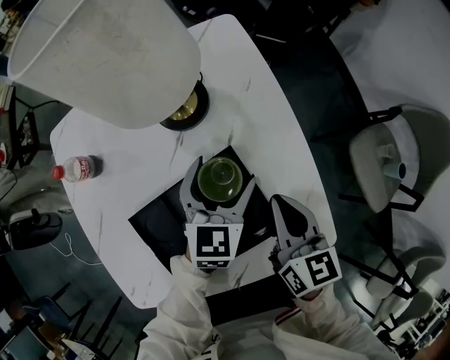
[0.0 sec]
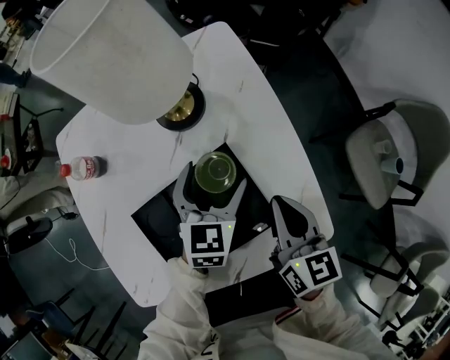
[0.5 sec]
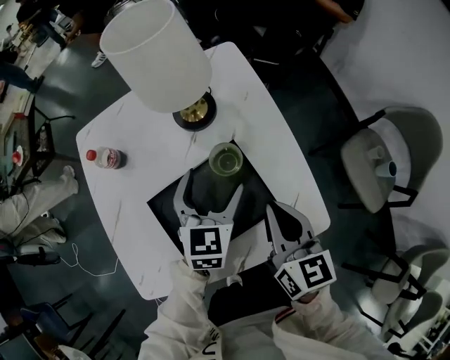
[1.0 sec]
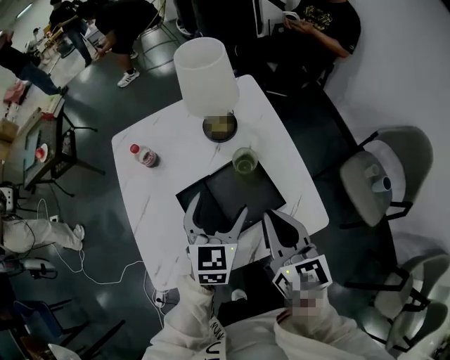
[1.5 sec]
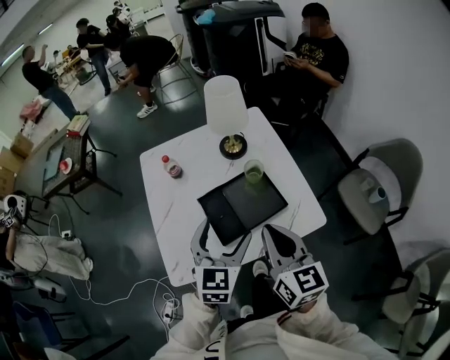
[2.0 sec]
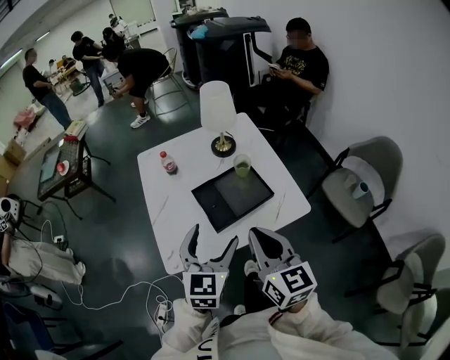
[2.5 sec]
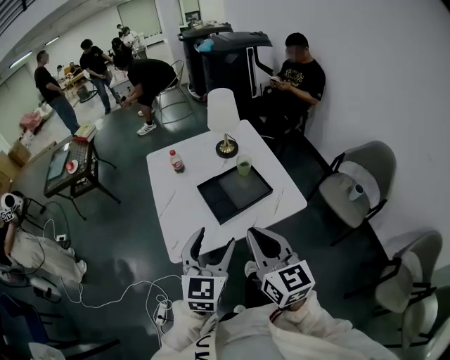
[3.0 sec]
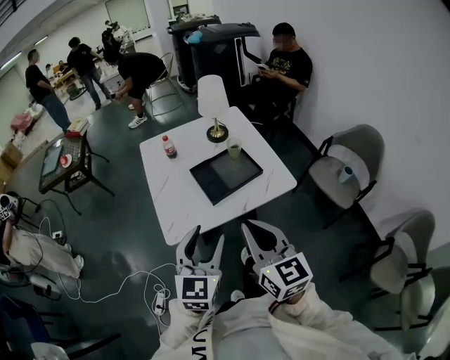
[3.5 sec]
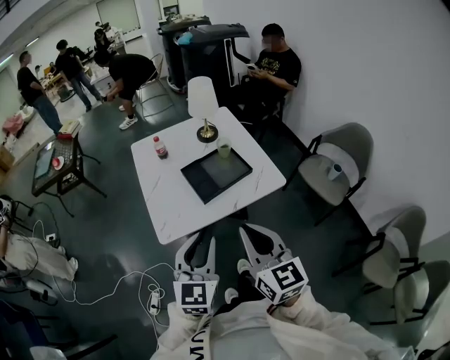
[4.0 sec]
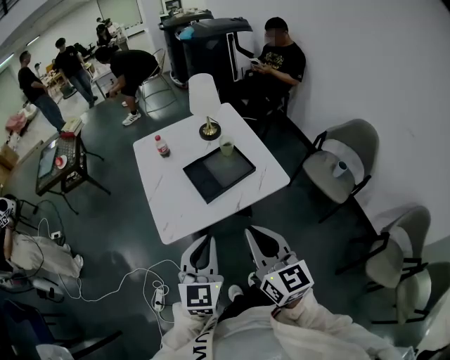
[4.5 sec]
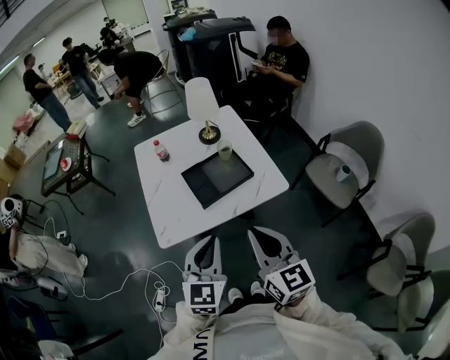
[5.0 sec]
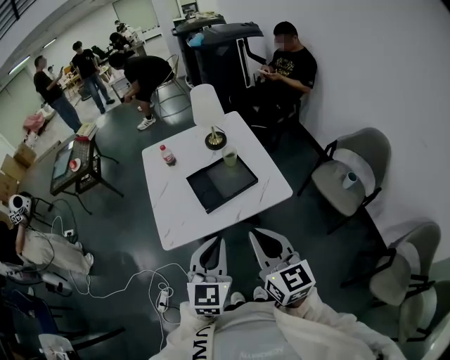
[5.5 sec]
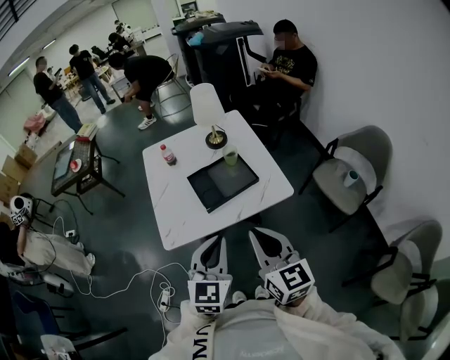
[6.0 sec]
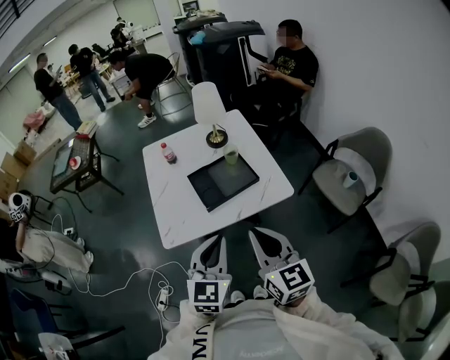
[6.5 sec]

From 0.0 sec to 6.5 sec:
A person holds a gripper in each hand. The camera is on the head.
From 0.0 sec to 2.0 sec: The left gripper is displaced backward, upward and to the left by about 35 cm. Meanwhile the right gripper goes roughly 35 cm upward, backward and to the left.
From 2.0 sec to 4.5 sec: Both grippers travel together backward, roughly 25 cm. The left gripper closes up.
From 4.5 sec to 6.5 sec: The grippers both shift to the right by about 5 cm.

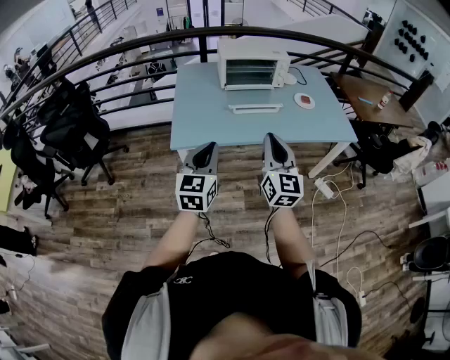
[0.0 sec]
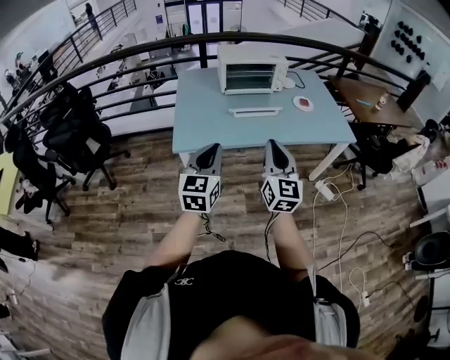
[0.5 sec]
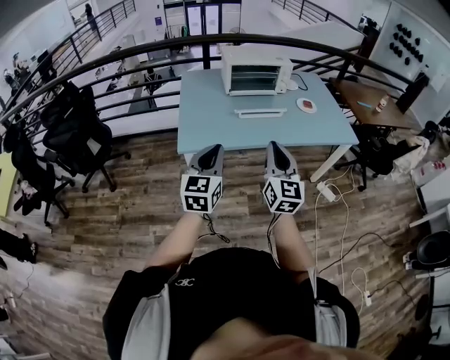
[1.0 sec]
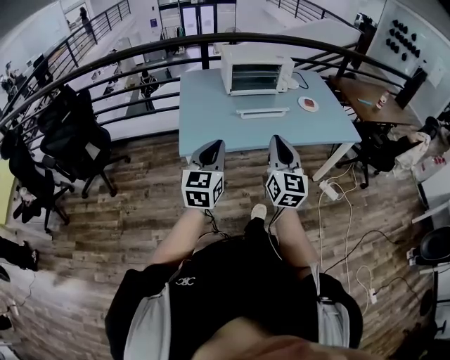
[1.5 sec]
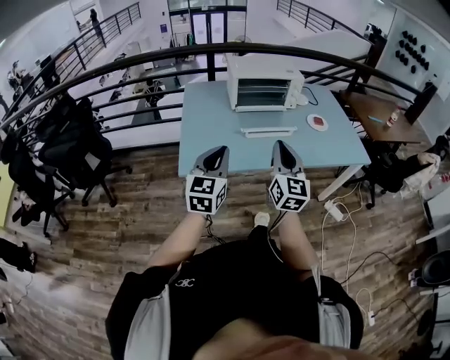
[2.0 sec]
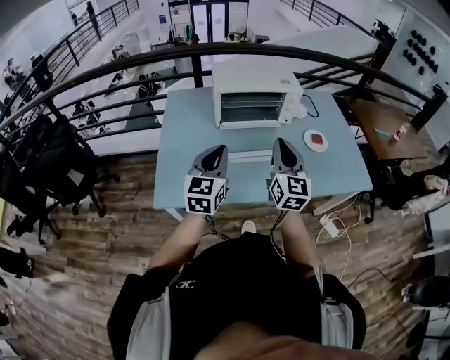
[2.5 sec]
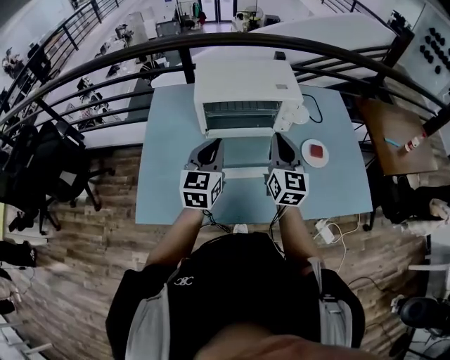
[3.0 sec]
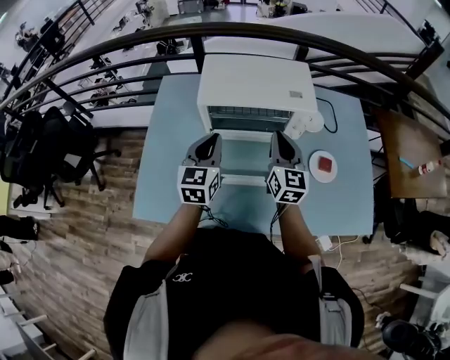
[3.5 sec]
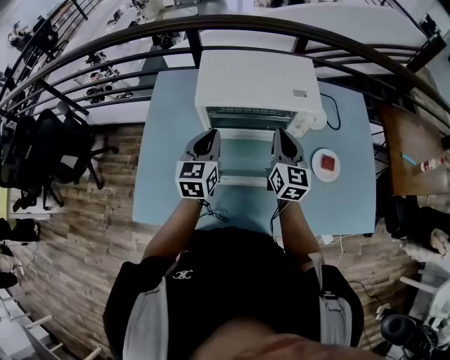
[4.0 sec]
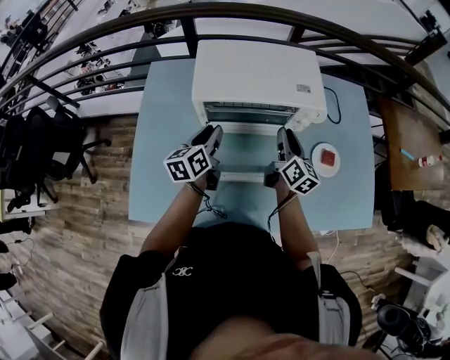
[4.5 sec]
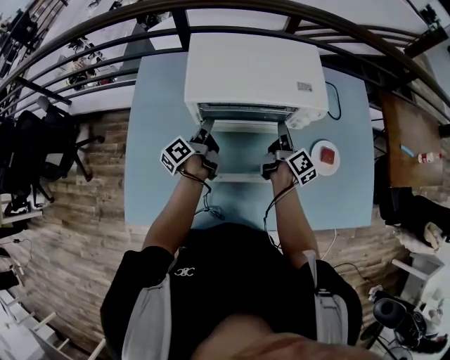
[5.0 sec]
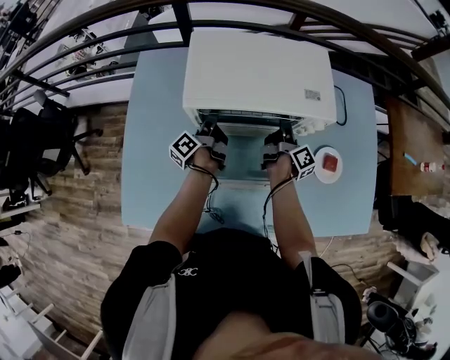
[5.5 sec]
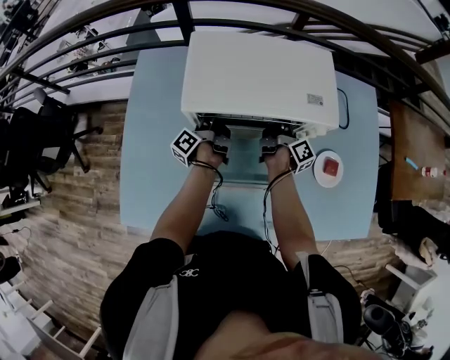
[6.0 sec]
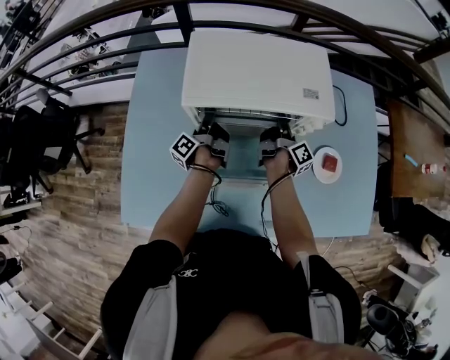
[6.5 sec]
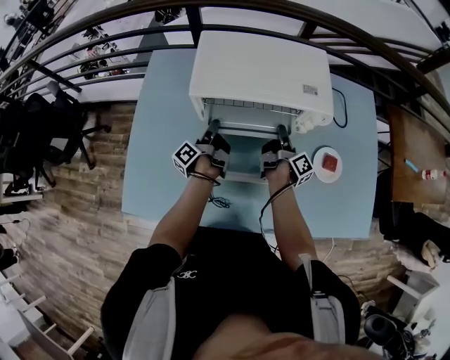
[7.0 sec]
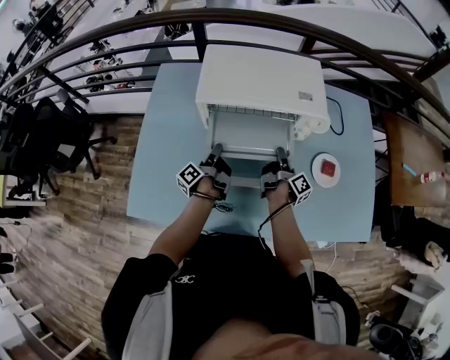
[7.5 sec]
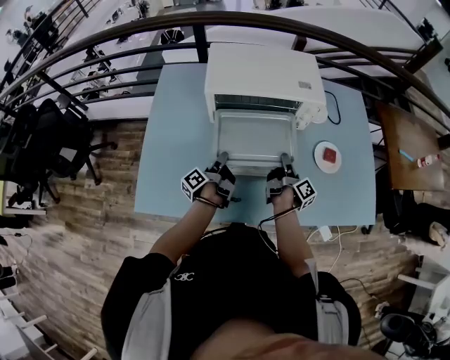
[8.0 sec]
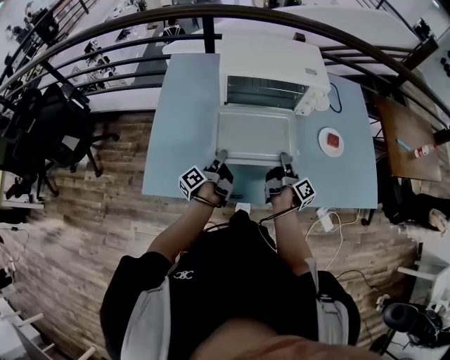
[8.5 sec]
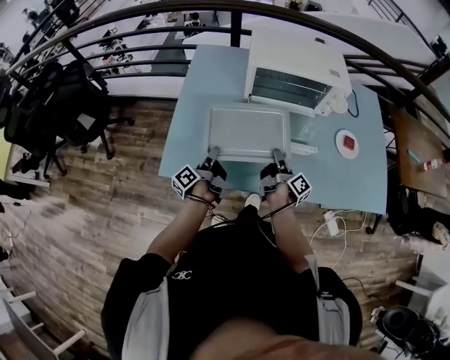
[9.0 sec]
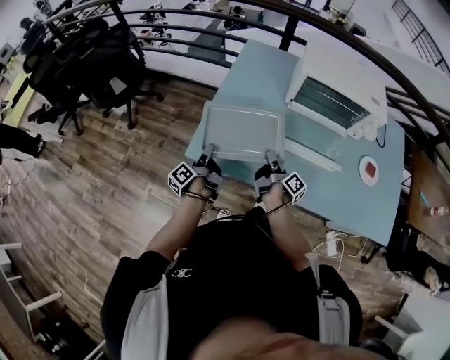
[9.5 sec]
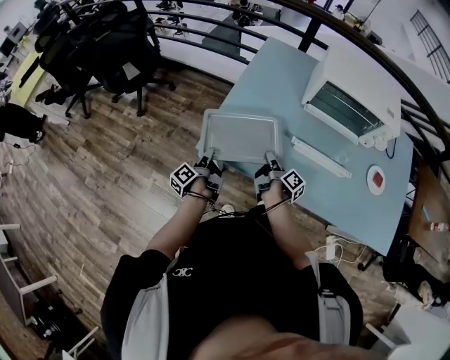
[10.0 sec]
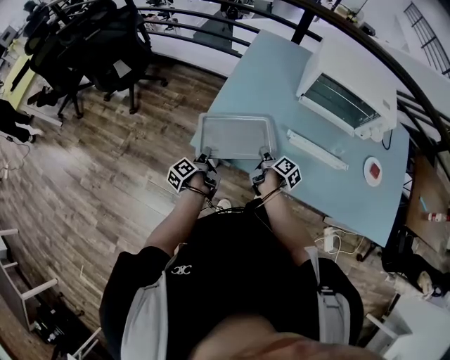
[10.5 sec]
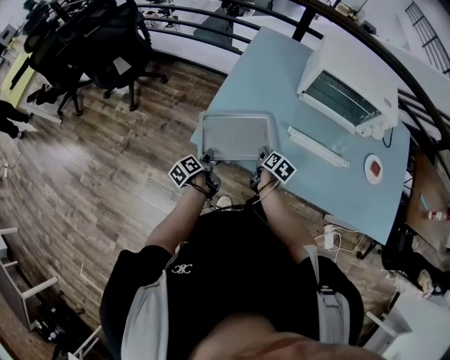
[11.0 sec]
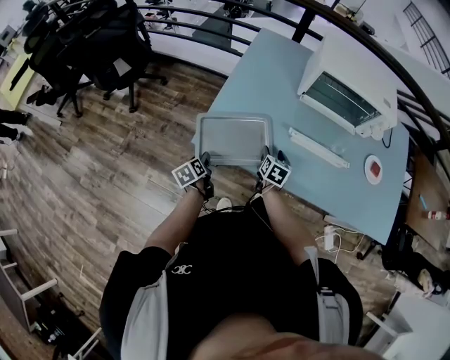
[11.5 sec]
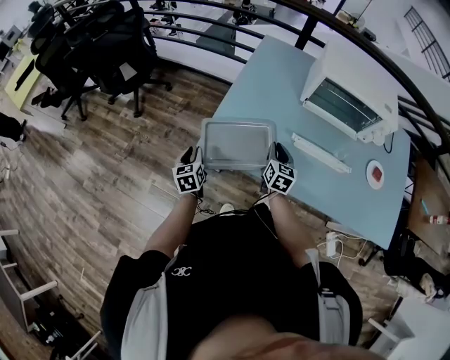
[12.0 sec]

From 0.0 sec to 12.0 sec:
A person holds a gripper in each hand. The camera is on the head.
From 0.0 sec to 2.0 sec: The two grippers go approximately 10 cm forward.
From 2.0 sec to 4.0 sec: The two grippers travel together, forward, about 50 cm. The left gripper swivels approximately 20 degrees.
From 4.0 sec to 6.0 sec: Both grippers travel together downward and forward, some 25 cm. The left gripper twists approximately 90 degrees counterclockwise, seen from behind. The right gripper rotates around the line of its fingers by roughly 70 degrees, clockwise from behind, and opens its fingers.
From 6.0 sec to 8.0 sec: Both grippers move backward, approximately 25 cm.
From 8.0 sec to 10.0 sec: The right gripper changes place by roughly 35 cm, and changes its angle by about 30 degrees, while the left gripper shifts by about 40 cm, and changes its angle by roughly 30 degrees.
From 10.0 sec to 12.0 sec: The right gripper rotates around the line of its fingers by some 70 degrees, counterclockwise from behind, and opens and closes again. The left gripper is displaced to the left by about 5 cm, travels downward and back again, roughly 10 cm each way, twists roughly 70 degrees clockwise, seen from behind, and opens and closes again.

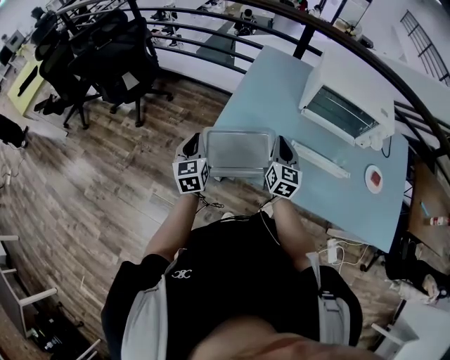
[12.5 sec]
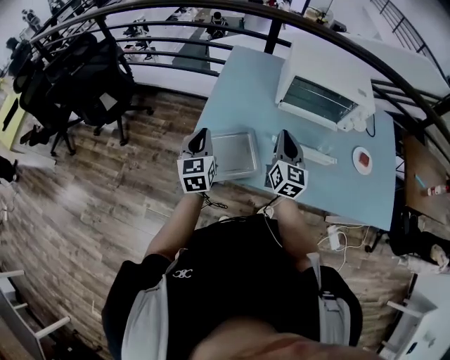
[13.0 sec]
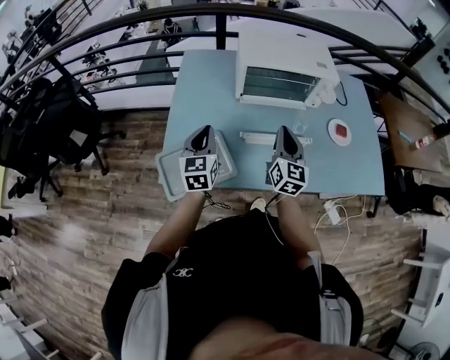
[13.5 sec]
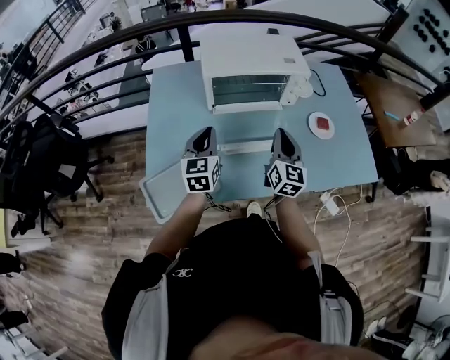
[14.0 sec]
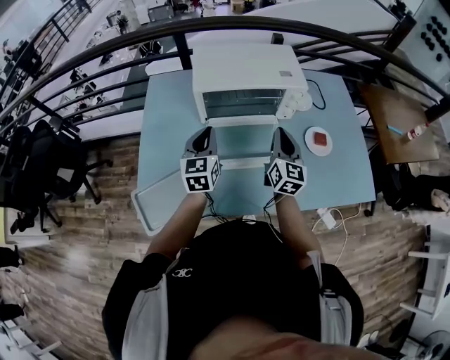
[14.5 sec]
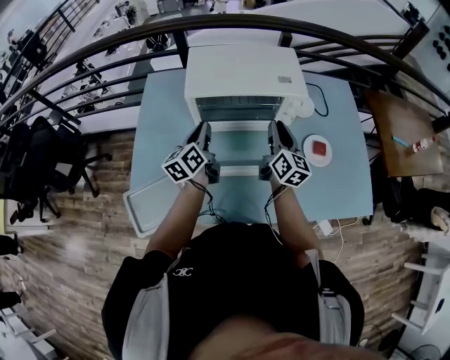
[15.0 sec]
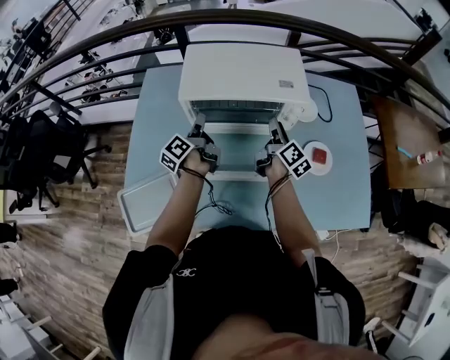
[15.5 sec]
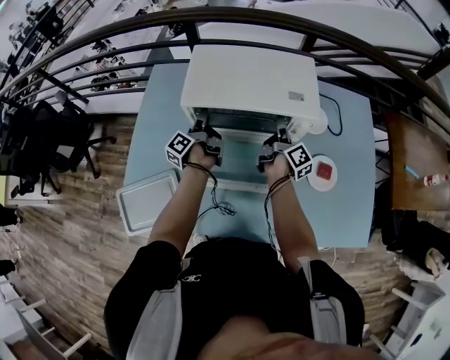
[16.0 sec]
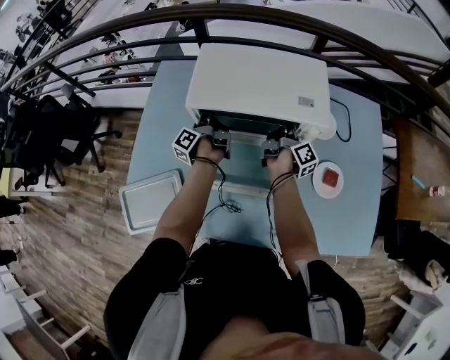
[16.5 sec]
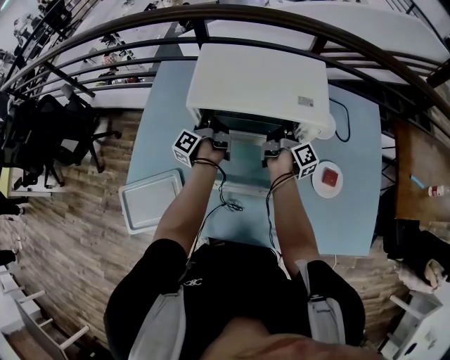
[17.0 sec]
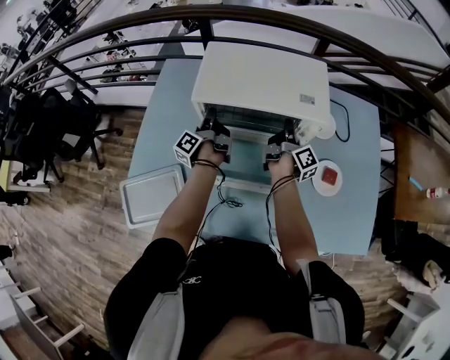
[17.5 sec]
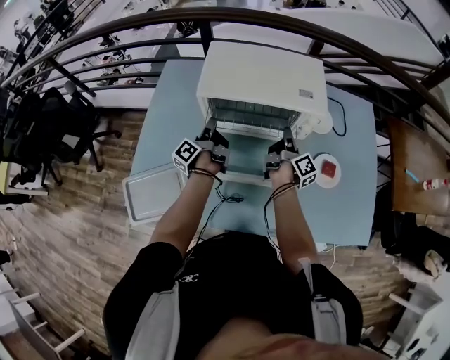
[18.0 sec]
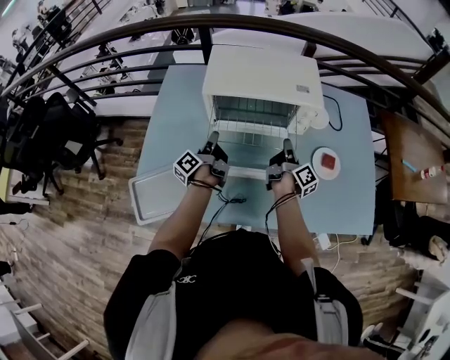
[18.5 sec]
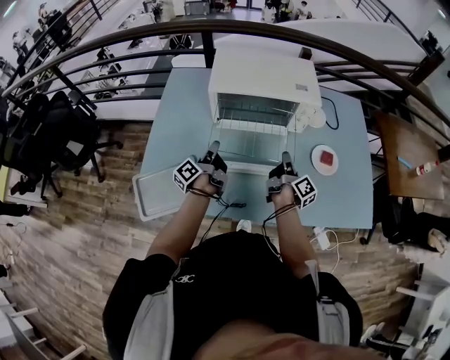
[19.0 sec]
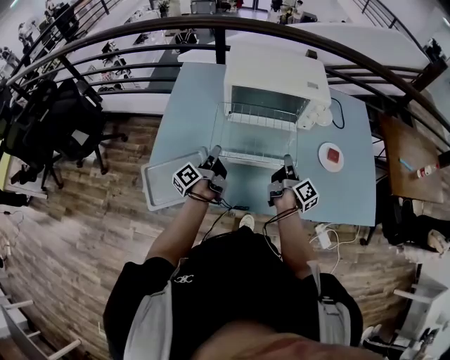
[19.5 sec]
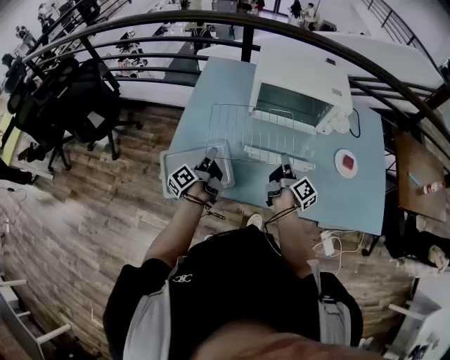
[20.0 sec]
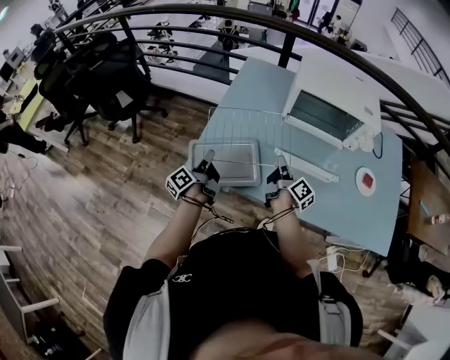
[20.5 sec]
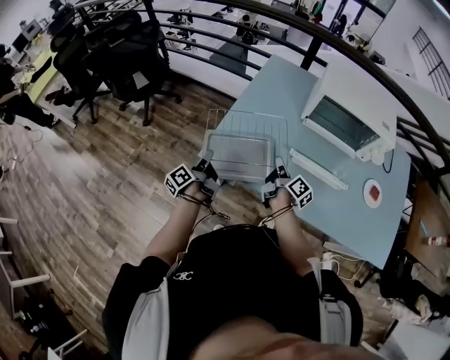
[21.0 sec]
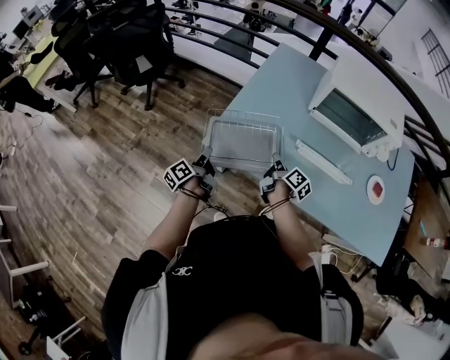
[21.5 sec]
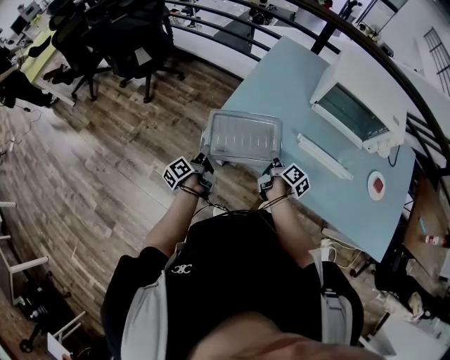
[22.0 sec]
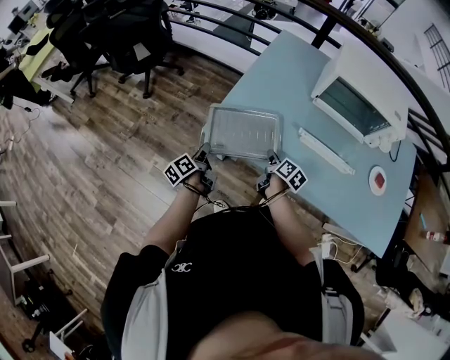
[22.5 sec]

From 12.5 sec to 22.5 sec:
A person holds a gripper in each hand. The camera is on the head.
From 12.5 sec to 14.5 sec: The right gripper changes place by some 35 cm, and turns by some 30 degrees. Meanwhile the left gripper changes place by roughly 40 cm, and rotates approximately 30 degrees.
From 14.5 sec to 16.5 sec: The two grippers go roughly 25 cm forward and downward. The left gripper rotates around the line of its fingers by roughly 90 degrees, counterclockwise from behind, and opens; the right gripper twists some 70 degrees clockwise, seen from behind, and opens, then closes once more.
From 16.5 sec to 18.5 sec: The grippers both shift backward by about 15 cm. The left gripper closes its fingers.
From 18.5 sec to 20.5 sec: The grippers both shift to the left and backward by about 30 cm. The right gripper swivels about 20 degrees.
From 20.5 sec to 22.5 sec: The left gripper moves downward, to the left and backward, approximately 15 cm, and rotates some 20 degrees. Meanwhile the right gripper goes some 15 cm downward and to the left, and points its fingers roughly 30 degrees further downward.
